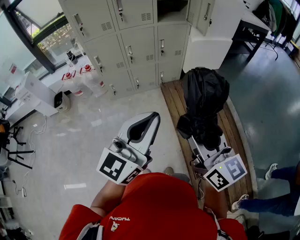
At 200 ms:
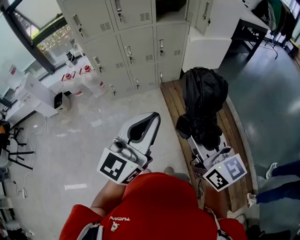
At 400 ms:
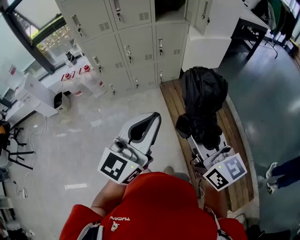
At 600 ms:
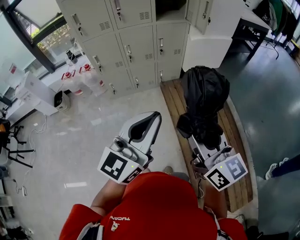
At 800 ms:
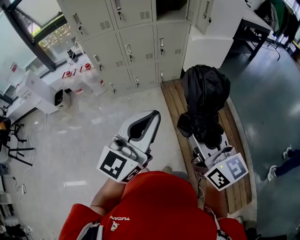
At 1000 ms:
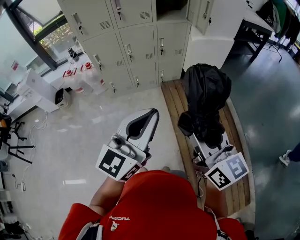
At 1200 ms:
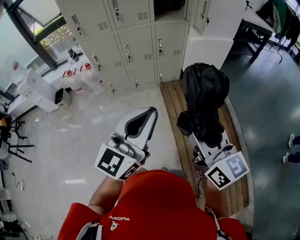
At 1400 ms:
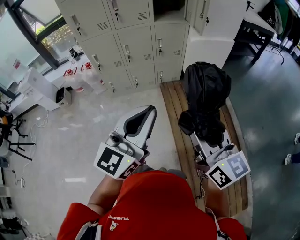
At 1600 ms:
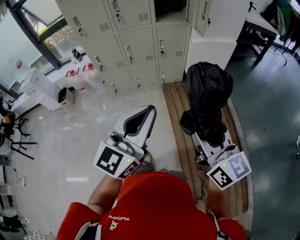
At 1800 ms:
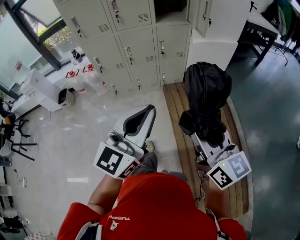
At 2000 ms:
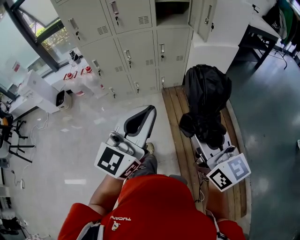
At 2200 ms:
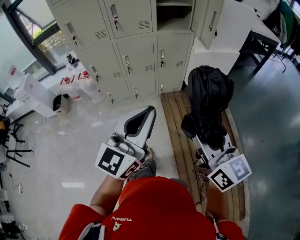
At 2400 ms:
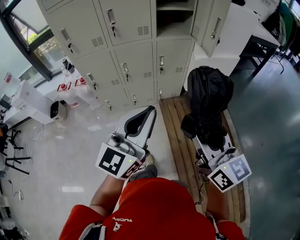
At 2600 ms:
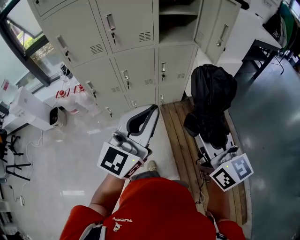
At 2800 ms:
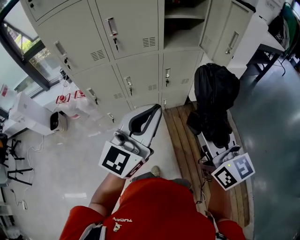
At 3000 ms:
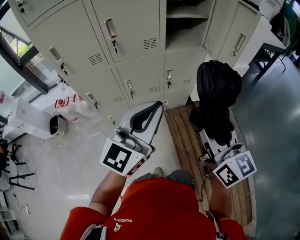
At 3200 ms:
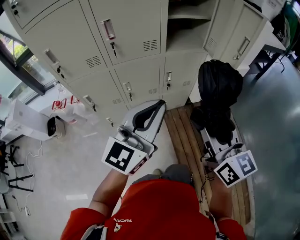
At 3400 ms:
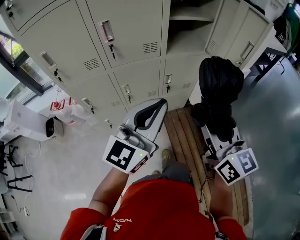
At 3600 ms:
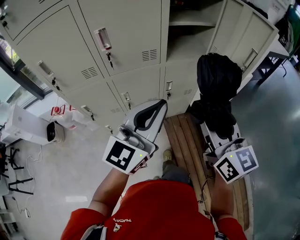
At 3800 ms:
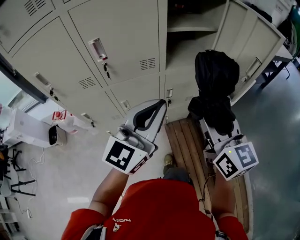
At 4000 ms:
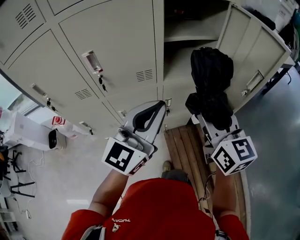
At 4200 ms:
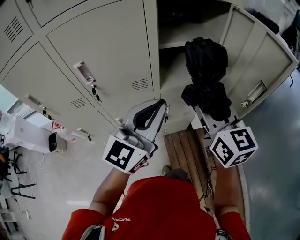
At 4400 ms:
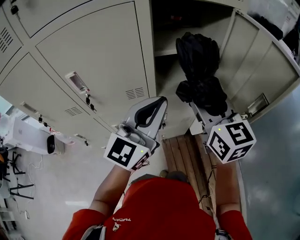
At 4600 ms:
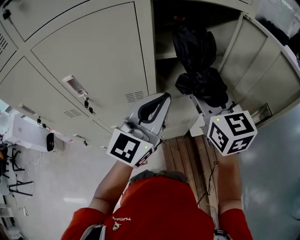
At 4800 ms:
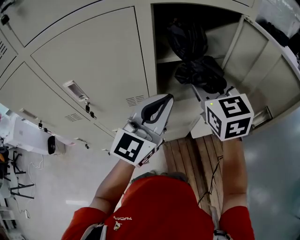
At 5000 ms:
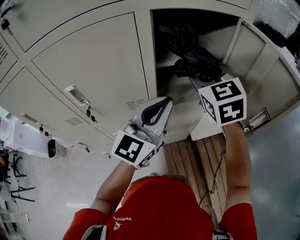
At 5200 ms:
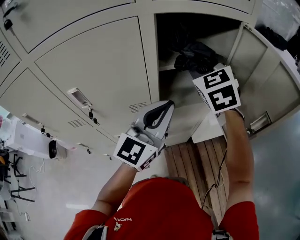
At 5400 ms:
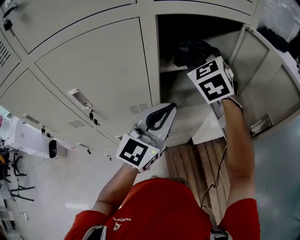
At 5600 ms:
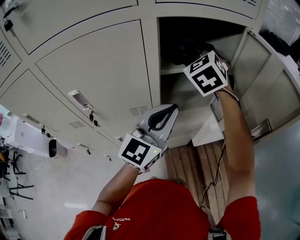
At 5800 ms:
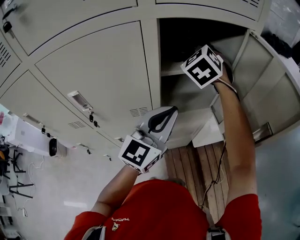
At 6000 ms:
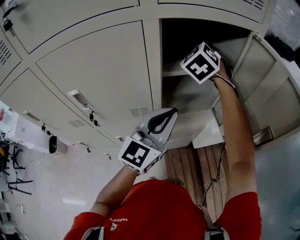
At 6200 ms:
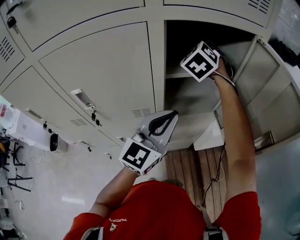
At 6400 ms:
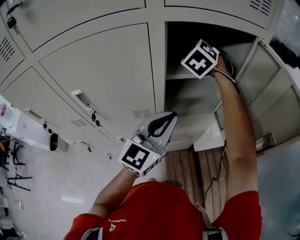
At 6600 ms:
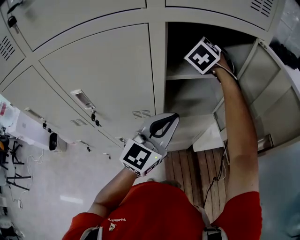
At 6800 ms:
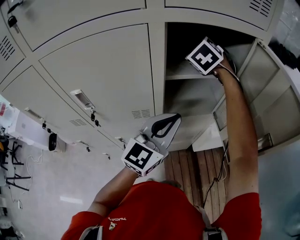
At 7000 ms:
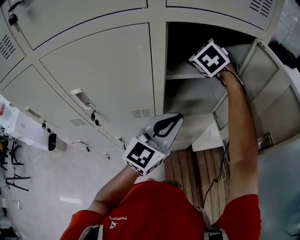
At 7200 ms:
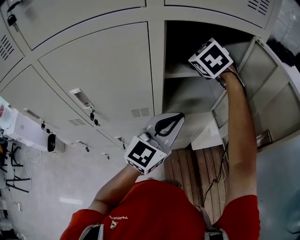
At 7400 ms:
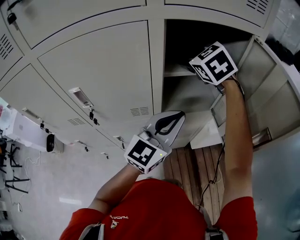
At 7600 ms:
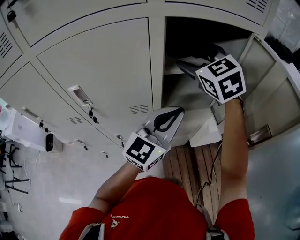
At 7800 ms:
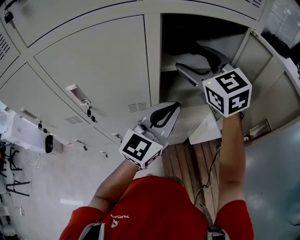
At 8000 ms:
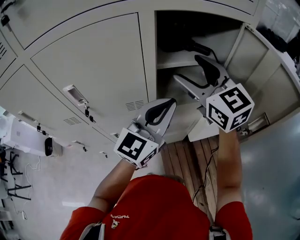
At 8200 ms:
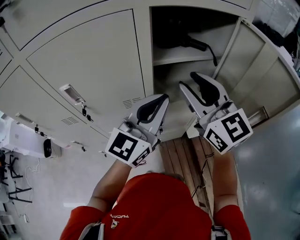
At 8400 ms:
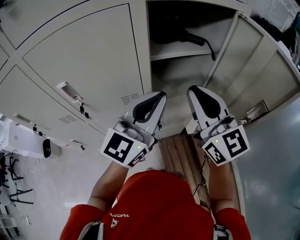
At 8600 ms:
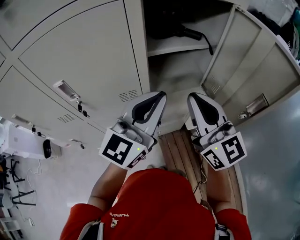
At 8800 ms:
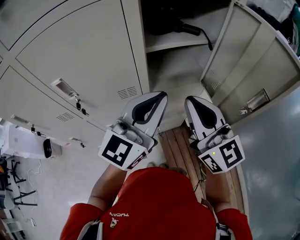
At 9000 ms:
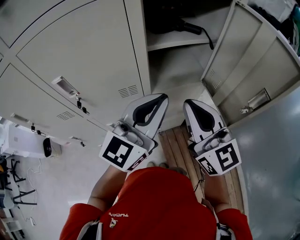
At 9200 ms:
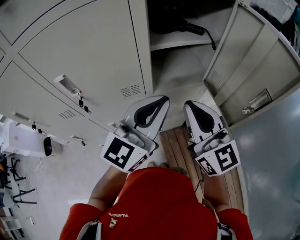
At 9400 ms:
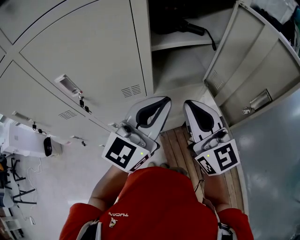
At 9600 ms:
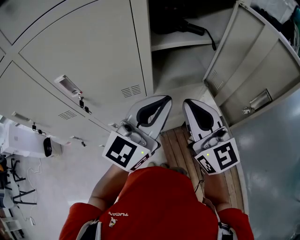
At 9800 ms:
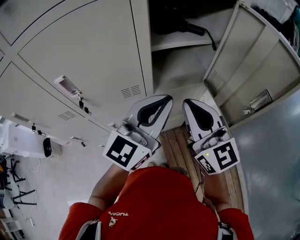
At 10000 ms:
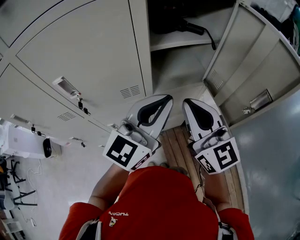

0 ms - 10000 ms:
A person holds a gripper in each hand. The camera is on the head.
0 ms - 1400 ms: Both grippers travel together to the right, approximately 10 cm.
1400 ms - 2800 ms: The two grippers go some 30 cm forward.
2800 ms - 4200 ms: The grippers both shift forward by roughly 35 cm.
4200 ms - 5800 ms: The left gripper goes roughly 10 cm forward; the right gripper moves forward, roughly 30 cm, and rolls counterclockwise, seen from behind, by approximately 50 degrees.
5800 ms - 7200 ms: The right gripper opens up.
7200 ms - 8600 ms: The right gripper goes some 25 cm backward, tilts its fingers approximately 40 degrees upward, and closes up. The left gripper moves roughly 5 cm.
8600 ms - 10000 ms: There are only small adjustments of the grippers.

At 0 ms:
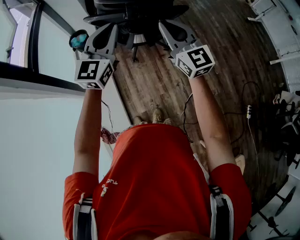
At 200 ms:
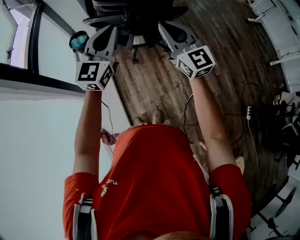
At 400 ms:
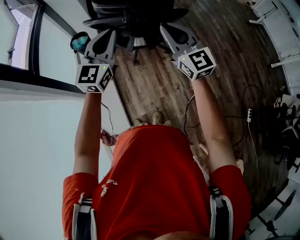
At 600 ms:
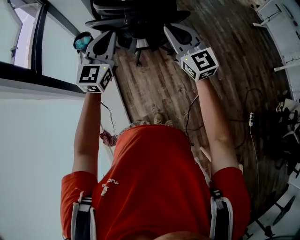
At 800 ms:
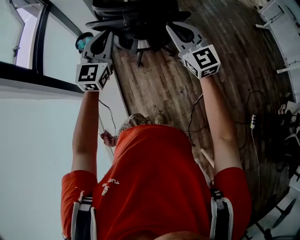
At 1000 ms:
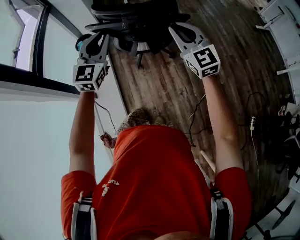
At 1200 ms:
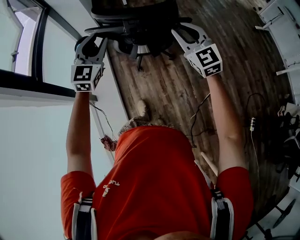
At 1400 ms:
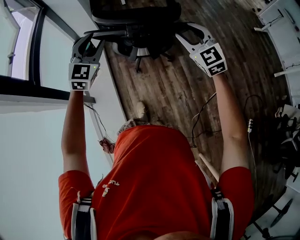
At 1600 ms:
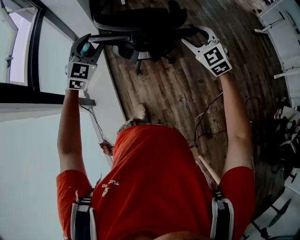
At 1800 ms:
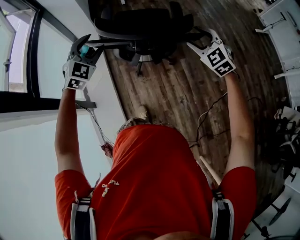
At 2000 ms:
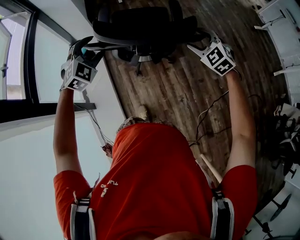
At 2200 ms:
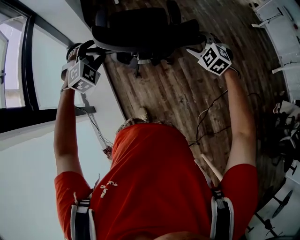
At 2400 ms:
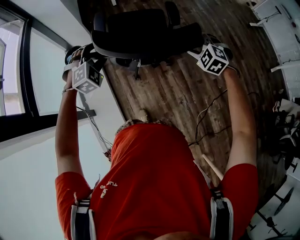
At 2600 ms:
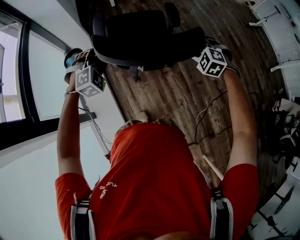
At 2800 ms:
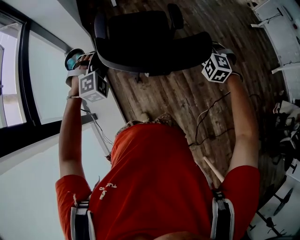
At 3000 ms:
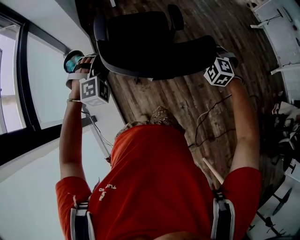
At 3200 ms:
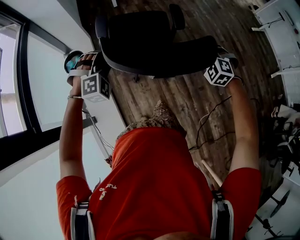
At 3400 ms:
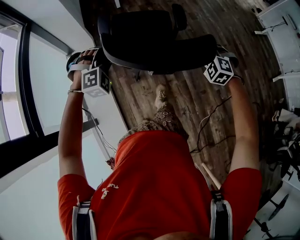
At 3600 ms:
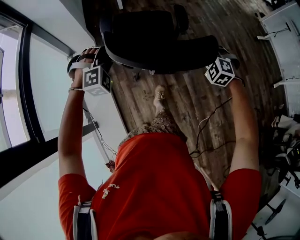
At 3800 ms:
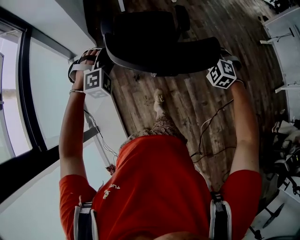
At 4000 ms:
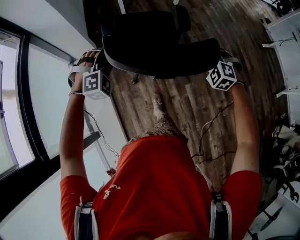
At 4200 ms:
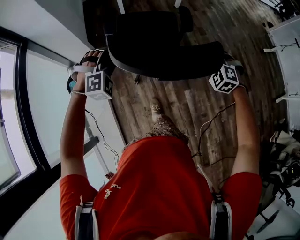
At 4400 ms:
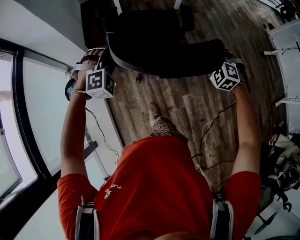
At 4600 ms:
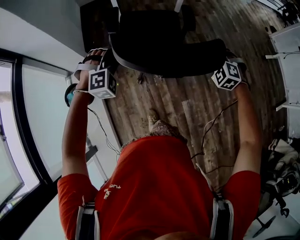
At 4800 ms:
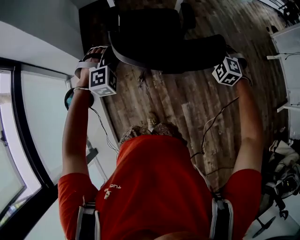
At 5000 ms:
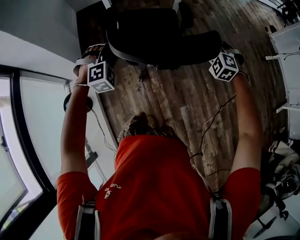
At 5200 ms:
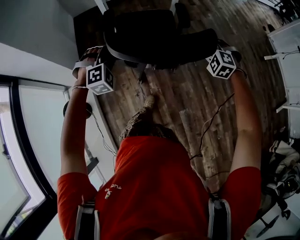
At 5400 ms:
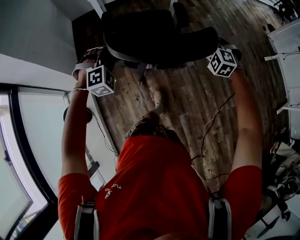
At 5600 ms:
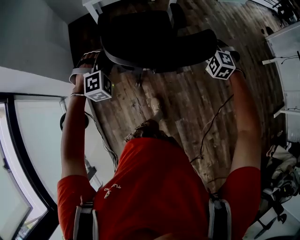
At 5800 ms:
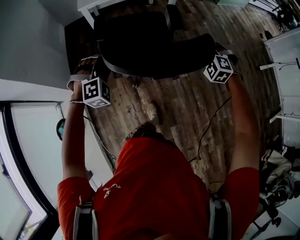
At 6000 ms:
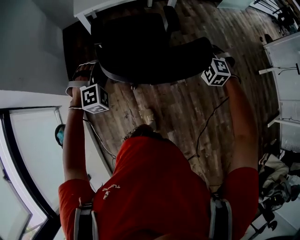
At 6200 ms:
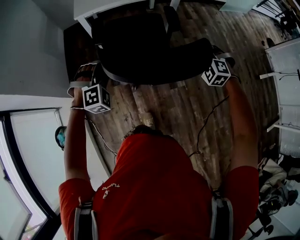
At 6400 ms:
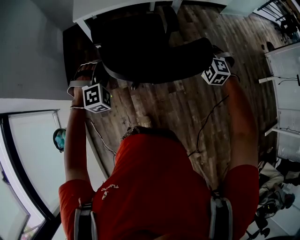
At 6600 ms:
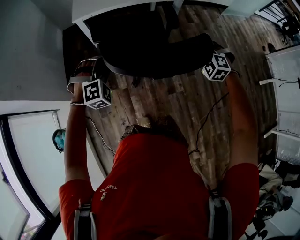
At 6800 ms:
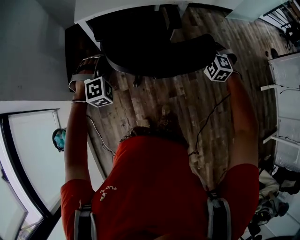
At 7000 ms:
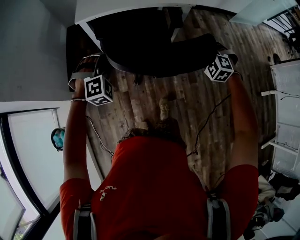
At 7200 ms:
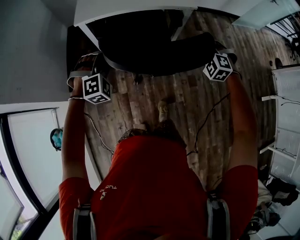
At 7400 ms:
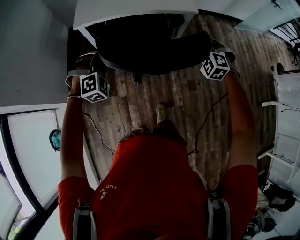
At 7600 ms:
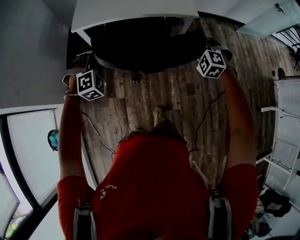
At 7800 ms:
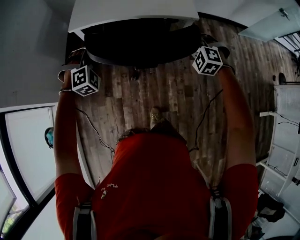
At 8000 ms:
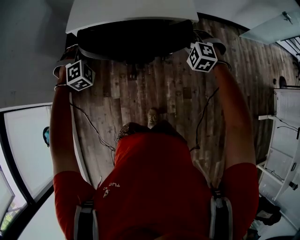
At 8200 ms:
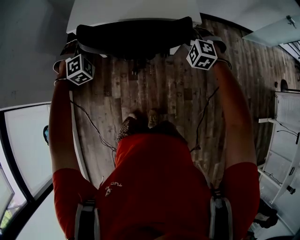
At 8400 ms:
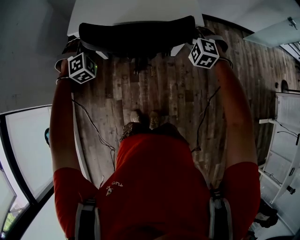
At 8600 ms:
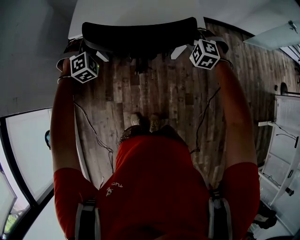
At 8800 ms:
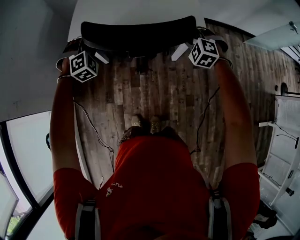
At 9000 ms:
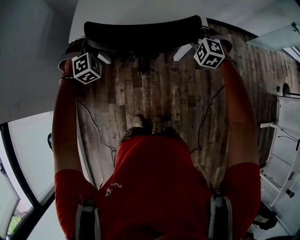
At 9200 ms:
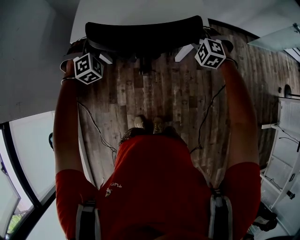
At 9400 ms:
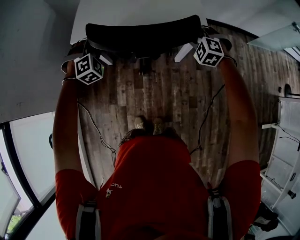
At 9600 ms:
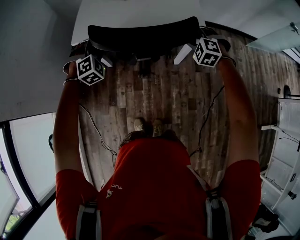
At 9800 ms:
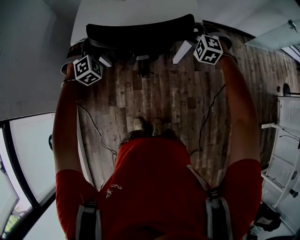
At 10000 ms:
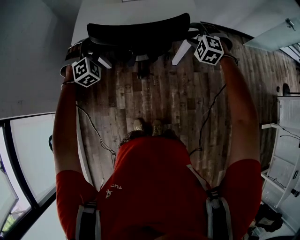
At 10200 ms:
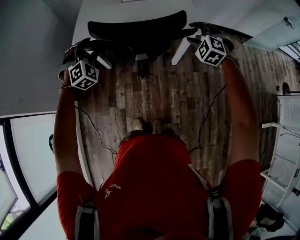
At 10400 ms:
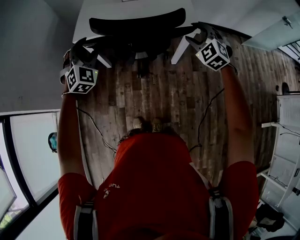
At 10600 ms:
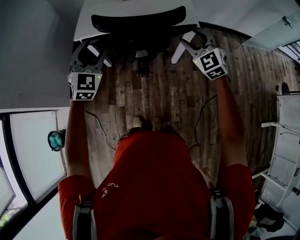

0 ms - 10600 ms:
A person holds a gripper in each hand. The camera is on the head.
0 ms - 1600 ms: The left gripper shifts approximately 20 cm forward, to the left and downward, changes its angle by about 30 degrees, and opens its fingers; the right gripper shifts roughly 20 cm forward, to the right and downward, tips its fingers downward by some 30 degrees, and opens.
1600 ms - 3000 ms: The right gripper is displaced downward and forward by roughly 15 cm, rotates approximately 40 degrees, and closes, while the left gripper travels forward and downward by some 15 cm, and twists some 40 degrees clockwise, seen from behind.
3000 ms - 4600 ms: The pair of grippers is taken forward, some 40 cm.
4600 ms - 6000 ms: Both grippers move forward, some 30 cm.
6000 ms - 7600 ms: The grippers both shift forward by approximately 30 cm.
7600 ms - 9000 ms: The grippers both shift forward by roughly 20 cm.
9000 ms - 10600 ms: The left gripper heads backward and upward, covering some 15 cm, rotates approximately 40 degrees, and opens its fingers; the right gripper is displaced upward and backward by approximately 15 cm, turns by roughly 40 degrees, and opens up.

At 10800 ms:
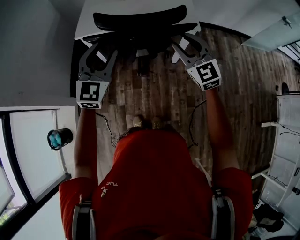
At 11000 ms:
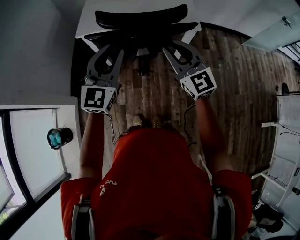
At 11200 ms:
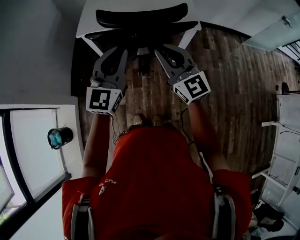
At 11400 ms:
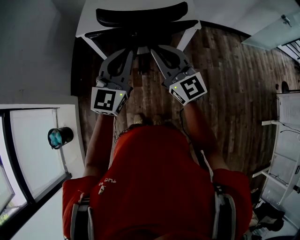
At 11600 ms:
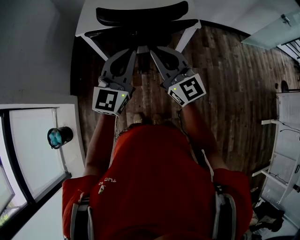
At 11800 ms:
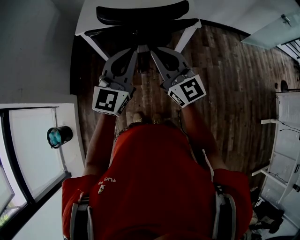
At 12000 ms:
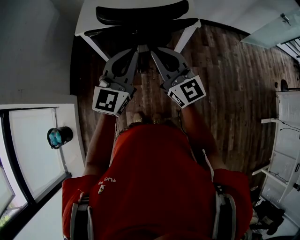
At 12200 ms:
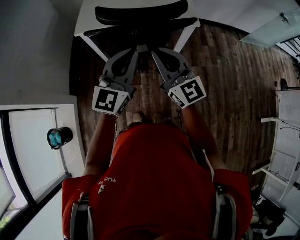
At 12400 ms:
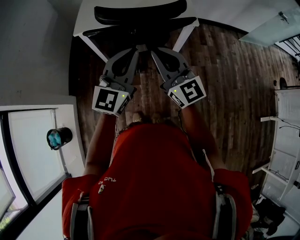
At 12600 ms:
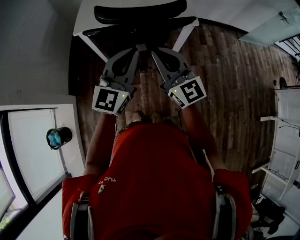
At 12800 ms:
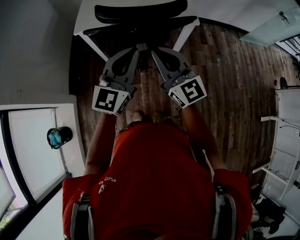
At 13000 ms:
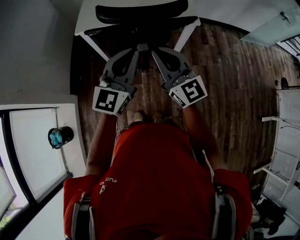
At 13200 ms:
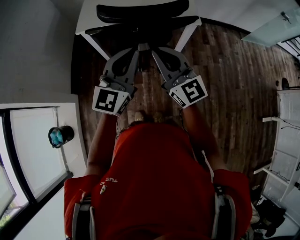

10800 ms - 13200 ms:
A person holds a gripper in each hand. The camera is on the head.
10800 ms - 12000 ms: The right gripper moves to the left and backward, approximately 15 cm, rotates about 30 degrees, and closes. The left gripper heads backward and to the right, covering about 10 cm, turns by about 20 degrees, and closes up.
12000 ms - 13200 ms: Neither gripper changes place.
